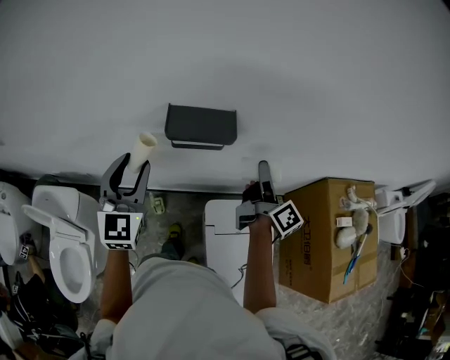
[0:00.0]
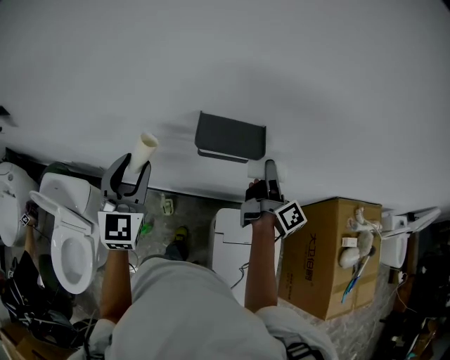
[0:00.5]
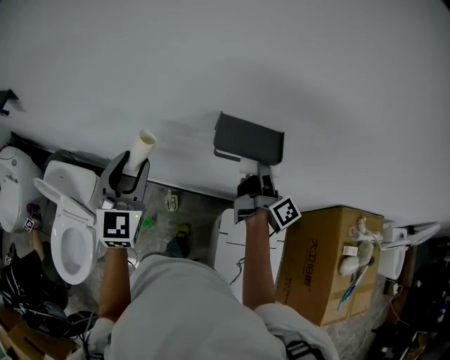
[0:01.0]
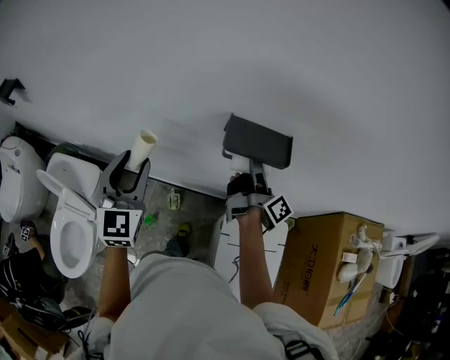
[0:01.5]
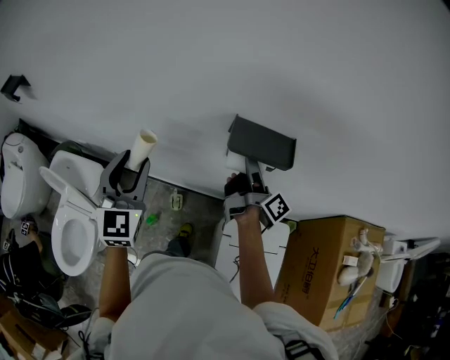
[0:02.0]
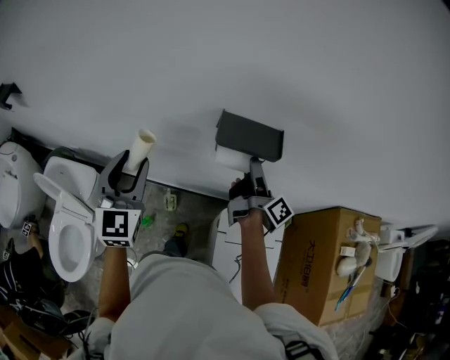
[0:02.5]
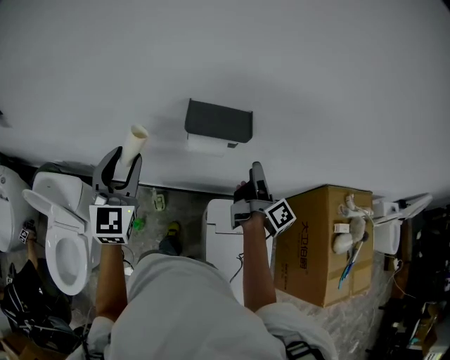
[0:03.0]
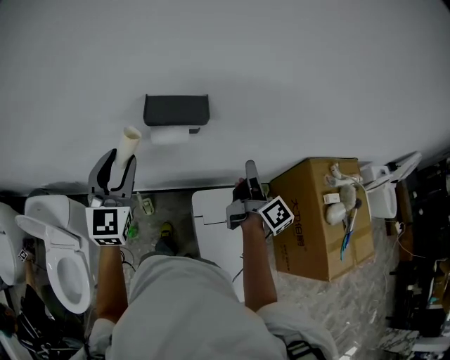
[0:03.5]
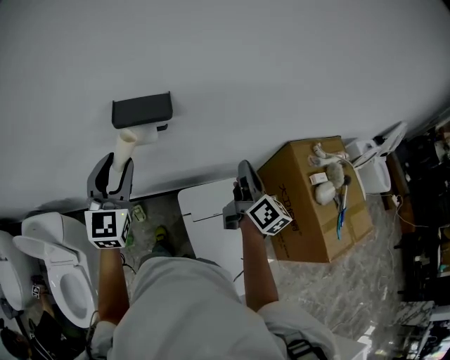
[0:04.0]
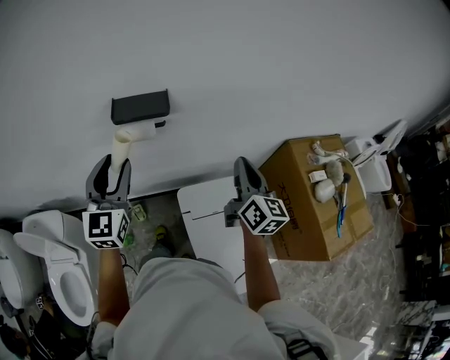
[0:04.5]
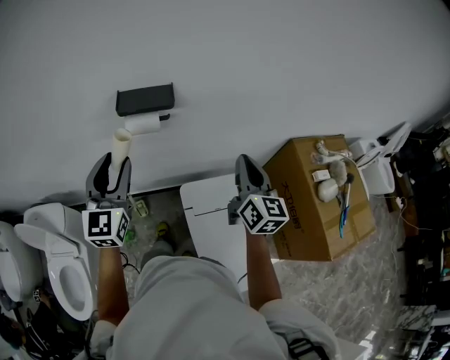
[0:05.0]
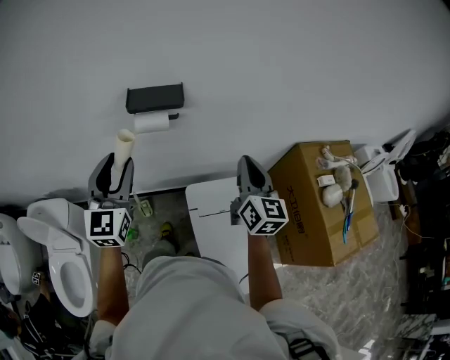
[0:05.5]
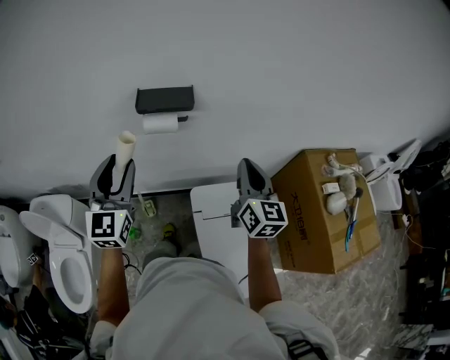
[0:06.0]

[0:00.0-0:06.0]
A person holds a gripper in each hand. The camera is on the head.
0:00.0 to 0:02.0: The left gripper moves to the left, about 15 cm. The right gripper travels to the left and forward by approximately 20 cm, and changes its angle by approximately 30 degrees.
0:02.0 to 0:04.0: The right gripper shifts by approximately 35 cm, rolls counterclockwise, seen from behind, by about 40 degrees, and closes, while the left gripper ends up some 20 cm from where it was, and turns by some 30 degrees.
0:04.0 to 0:06.0: The left gripper moves backward, approximately 5 cm, while the right gripper goes approximately 5 cm to the left, and rotates approximately 30 degrees.

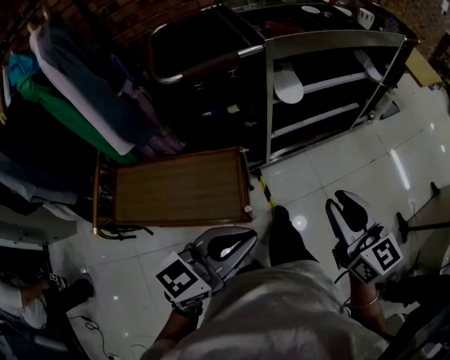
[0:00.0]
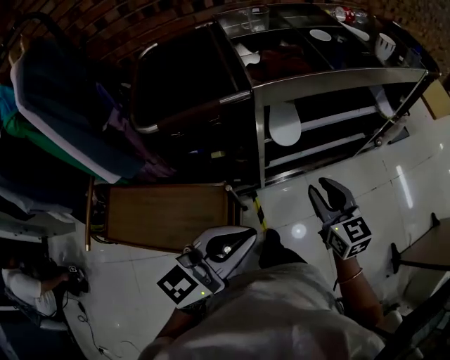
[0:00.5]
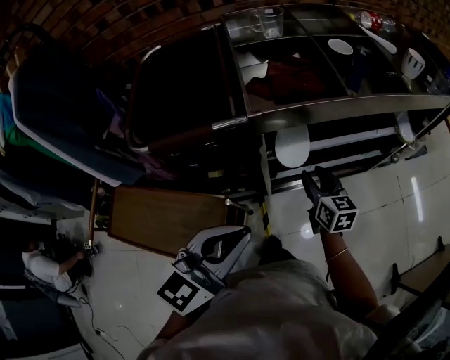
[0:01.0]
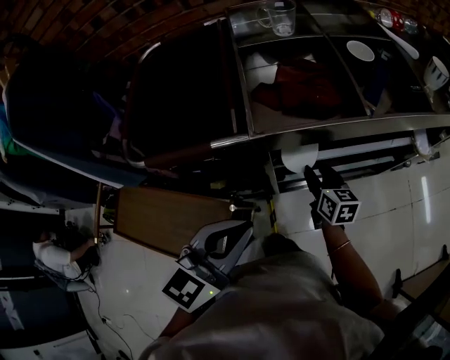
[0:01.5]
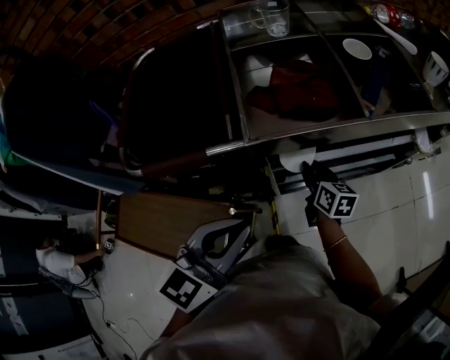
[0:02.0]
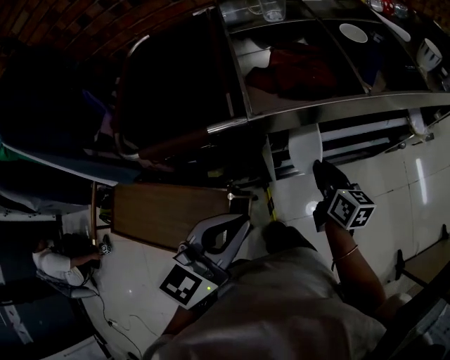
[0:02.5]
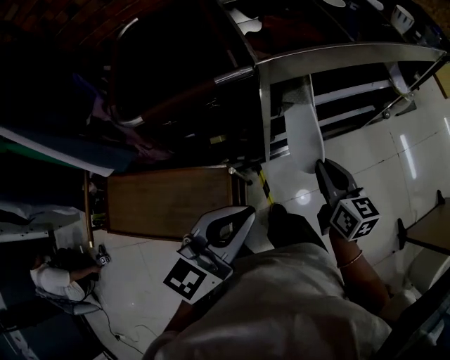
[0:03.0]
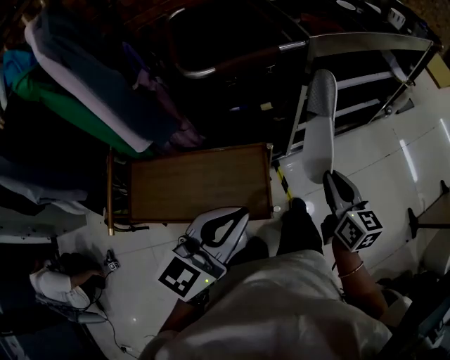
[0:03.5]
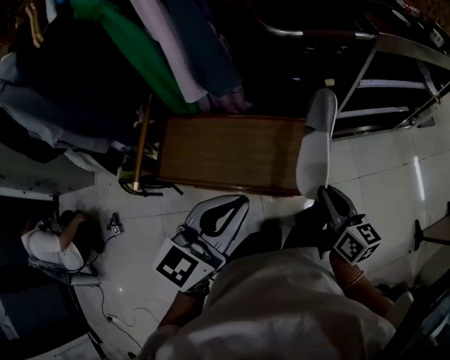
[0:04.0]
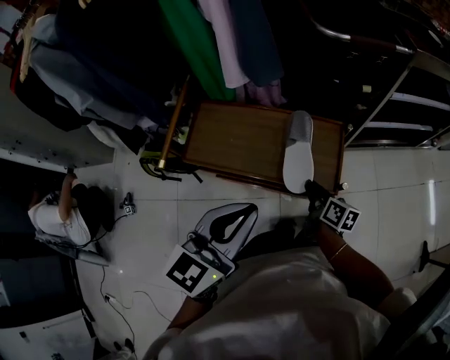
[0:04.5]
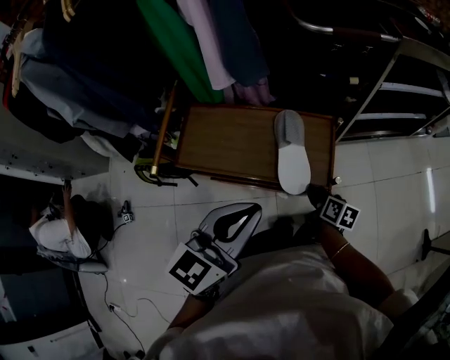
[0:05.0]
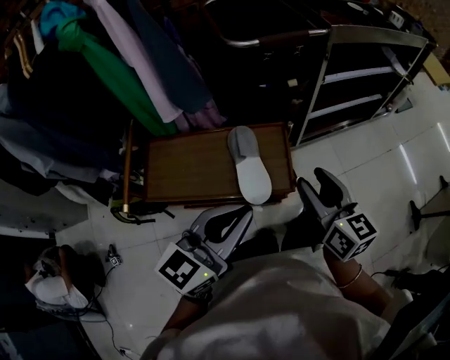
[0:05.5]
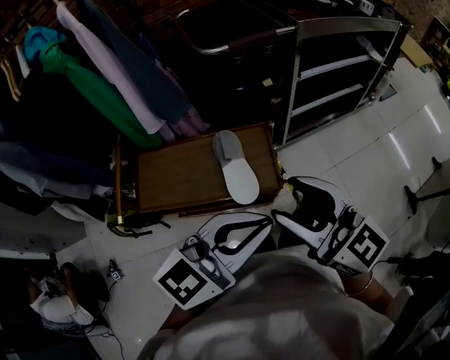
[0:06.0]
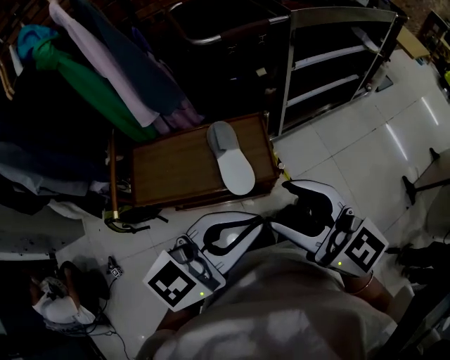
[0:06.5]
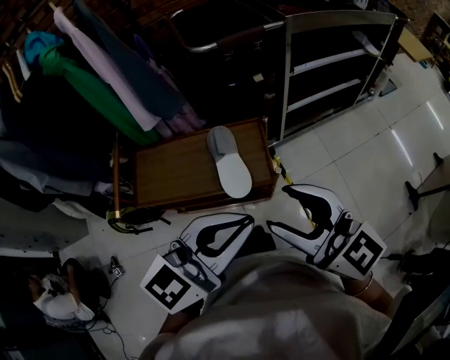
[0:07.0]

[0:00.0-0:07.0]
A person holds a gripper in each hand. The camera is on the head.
0:00.0 to 0:02.0: The right gripper travels forward and downward by approximately 50 cm, and swivels about 30 degrees. The left gripper shifts roughly 35 cm forward, and changes its angle by roughly 30 degrees.
0:02.0 to 0:03.5: The right gripper travels backward by some 35 cm, and closes, while the left gripper moves backward and to the left, approximately 30 cm.
0:03.5 to 0:05.0: The right gripper goes about 35 cm downward, to the left and backward, turns by roughly 40 degrees, and opens its fingers; the left gripper shifts about 20 cm to the left and backward.
0:05.0 to 0:07.0: The left gripper heads to the right and upward, covering approximately 15 cm, and swivels roughly 30 degrees; the right gripper heads upward, covering approximately 40 cm, and angles its fingers upward, by roughly 40 degrees.

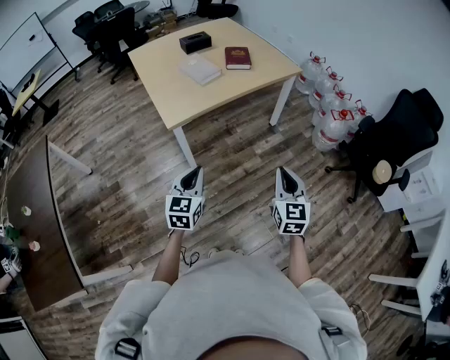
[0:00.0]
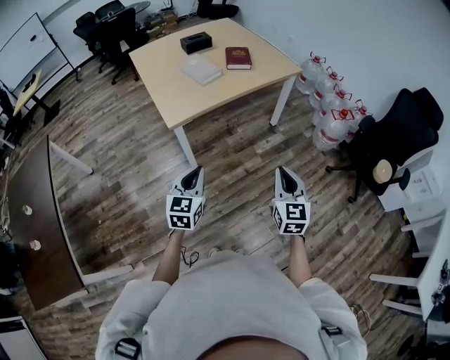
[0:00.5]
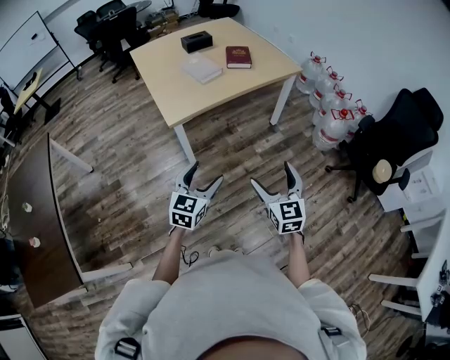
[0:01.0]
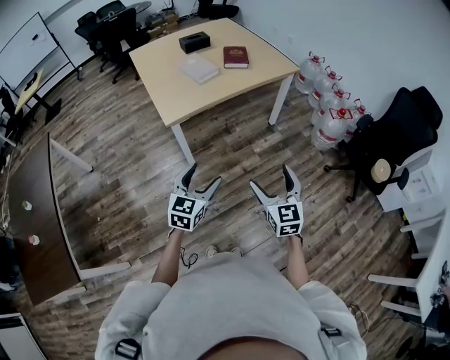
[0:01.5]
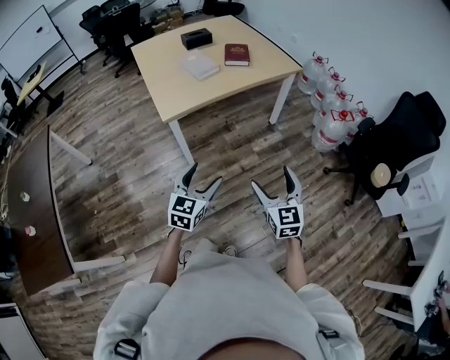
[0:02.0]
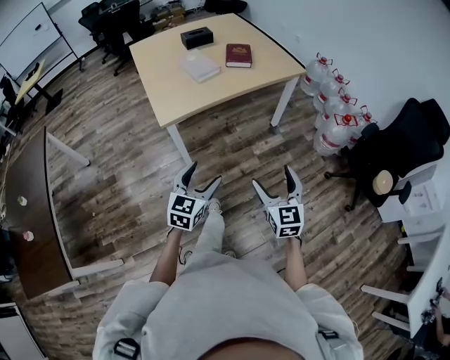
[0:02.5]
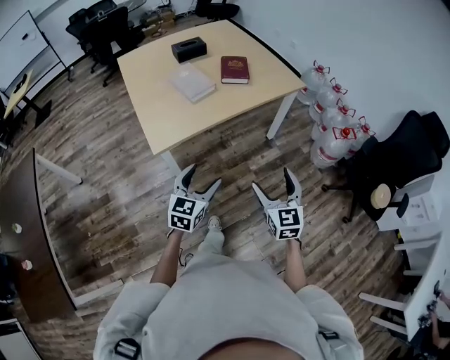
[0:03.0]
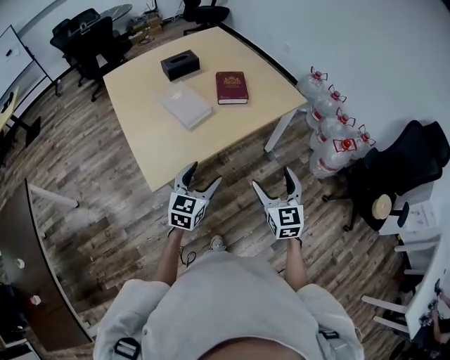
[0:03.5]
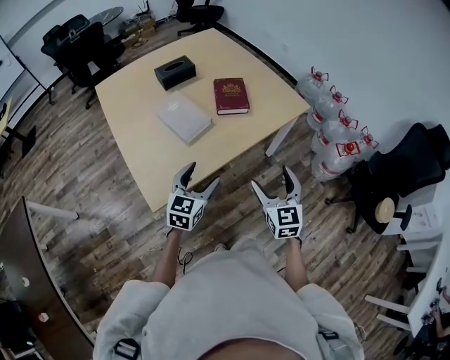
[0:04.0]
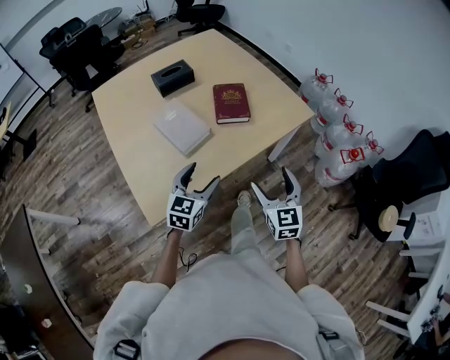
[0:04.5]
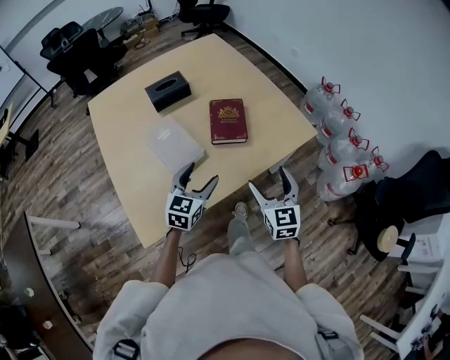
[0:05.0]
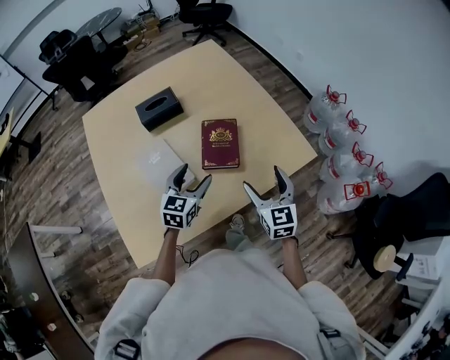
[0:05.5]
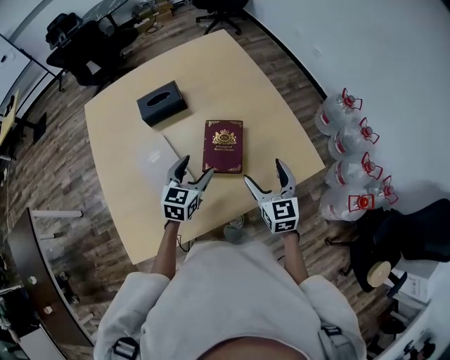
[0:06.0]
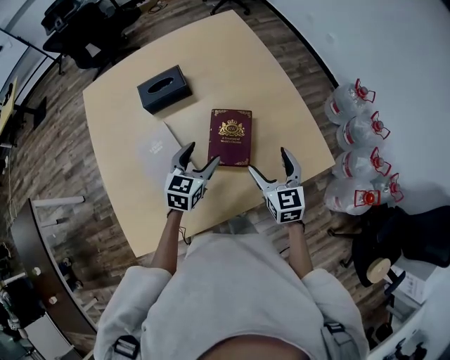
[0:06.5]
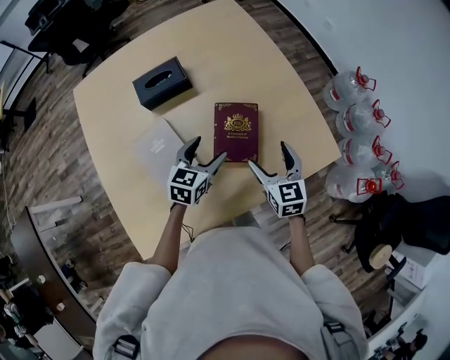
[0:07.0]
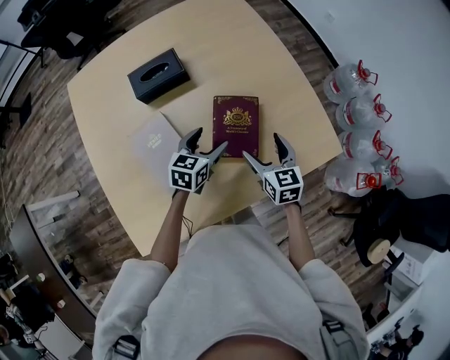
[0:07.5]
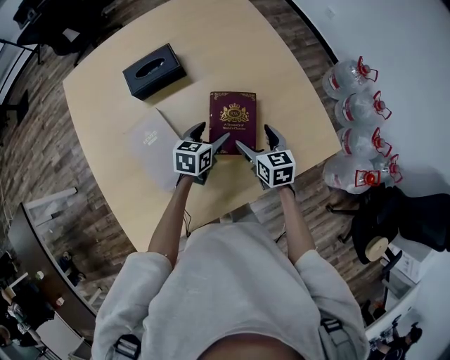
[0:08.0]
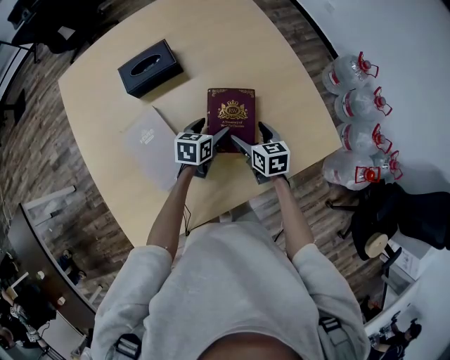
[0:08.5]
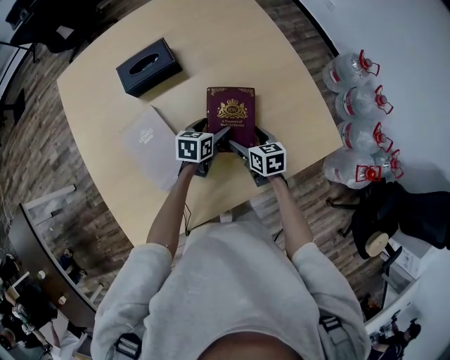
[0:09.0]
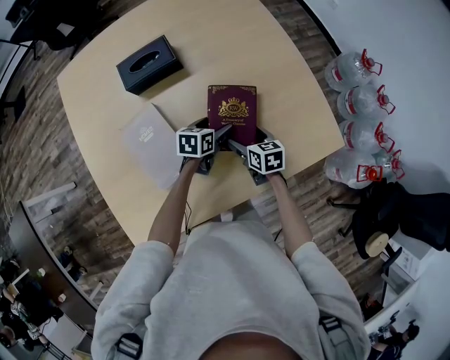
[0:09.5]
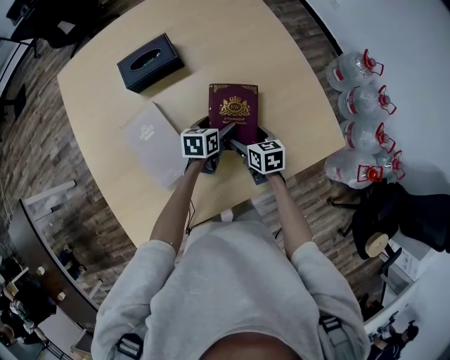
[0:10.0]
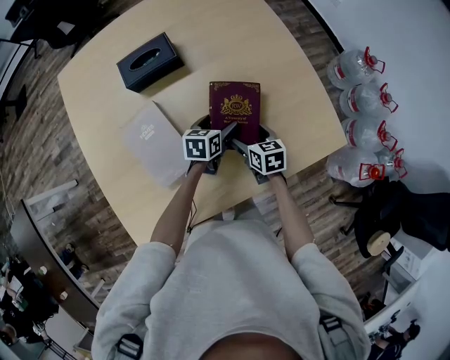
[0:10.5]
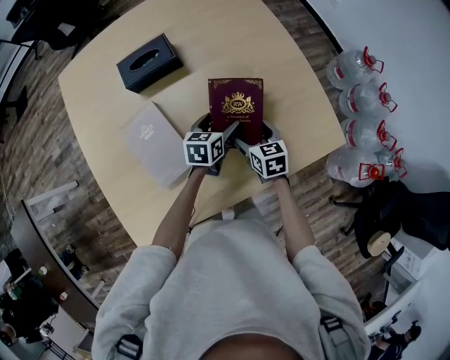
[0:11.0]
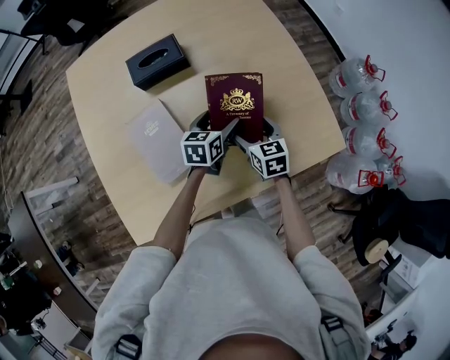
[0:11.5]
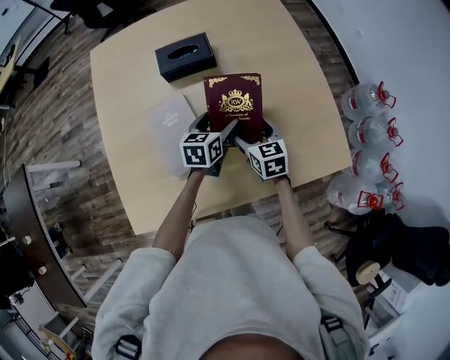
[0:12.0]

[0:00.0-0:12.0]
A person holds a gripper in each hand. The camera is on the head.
0:00.0 to 0:02.0: The right gripper opens its fingers, while the left gripper shifts about 10 cm to the right, and opens.
0:02.0 to 0:04.0: The pair of grippers is taken forward, approximately 40 cm.
0:04.0 to 0:06.0: The grippers both shift forward by about 35 cm.
0:06.0 to 0:08.0: The left gripper is displaced downward and forward by about 15 cm, and swivels about 20 degrees. The right gripper goes roughly 15 cm downward, forward and to the left, and rotates roughly 20 degrees.
0:08.0 to 0:10.0: Both grippers travel together downward, some 5 cm.
0:10.0 to 0:12.0: Both grippers move upward and to the left, some 10 cm. The right gripper swivels roughly 20 degrees.

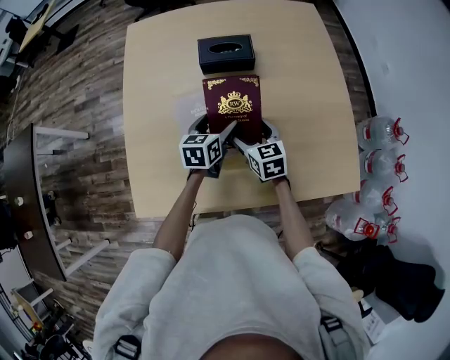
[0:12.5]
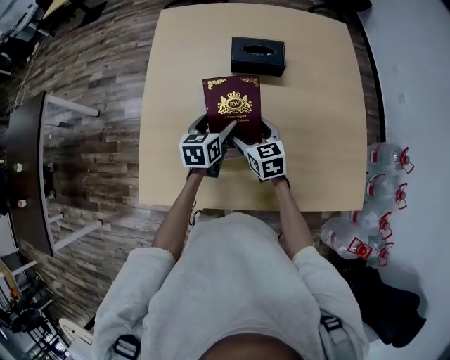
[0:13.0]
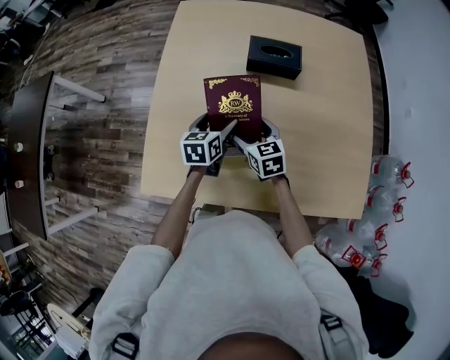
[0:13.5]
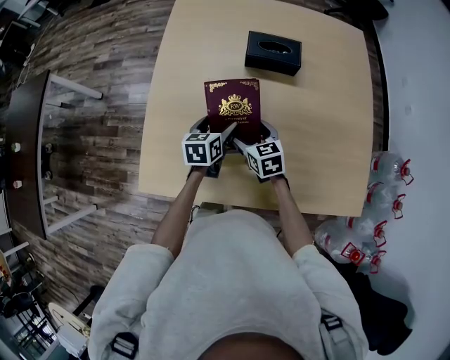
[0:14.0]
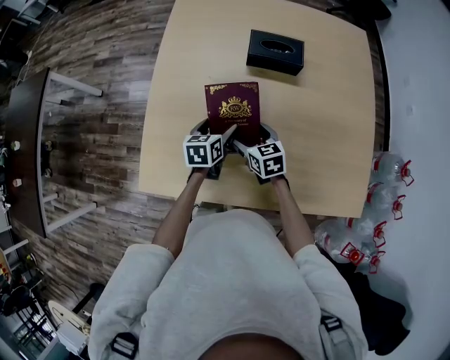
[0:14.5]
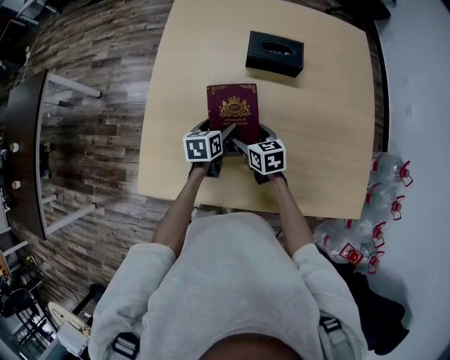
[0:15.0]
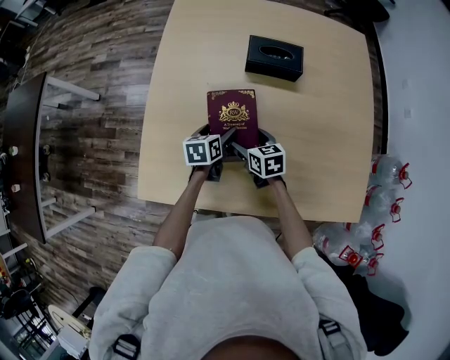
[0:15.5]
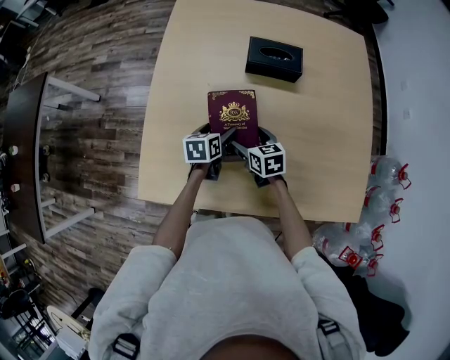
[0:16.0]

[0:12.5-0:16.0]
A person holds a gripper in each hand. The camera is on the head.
0:12.5 to 0:14.5: The two grippers go approximately 10 cm to the left.
0:14.5 to 0:16.0: The grippers move only a little.
